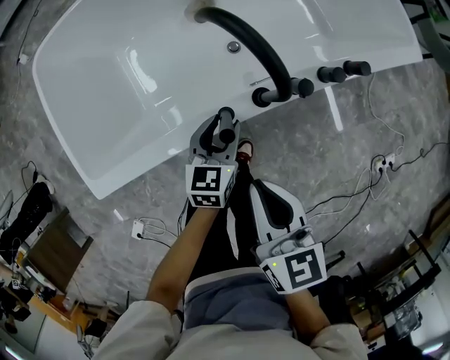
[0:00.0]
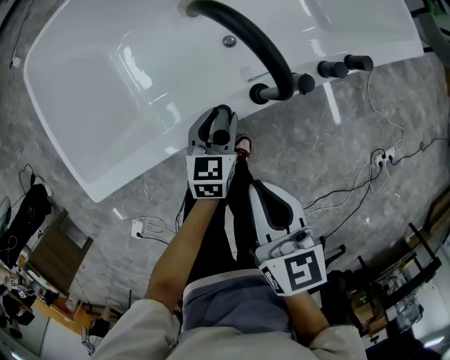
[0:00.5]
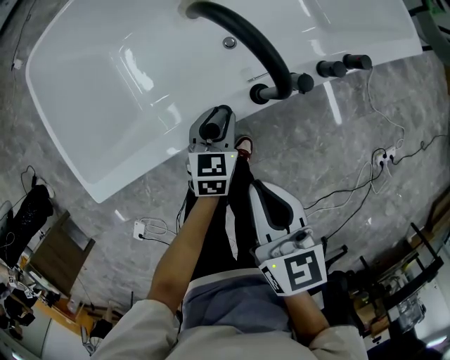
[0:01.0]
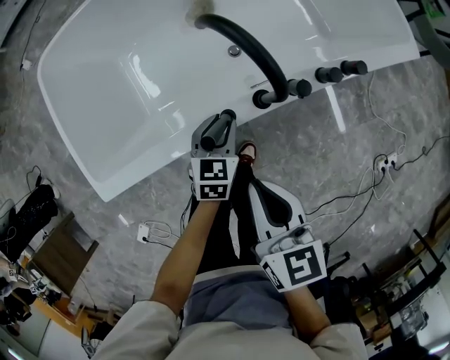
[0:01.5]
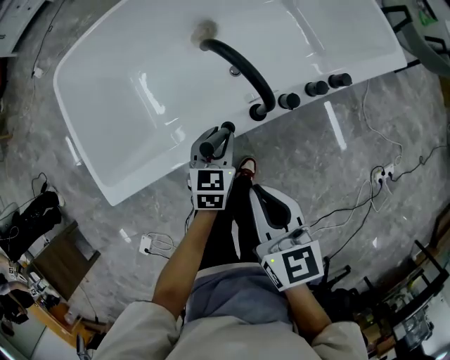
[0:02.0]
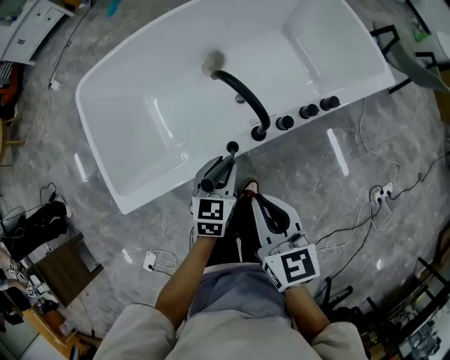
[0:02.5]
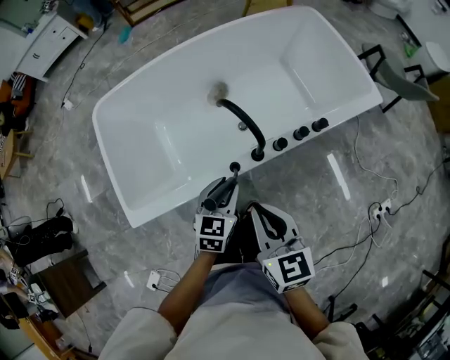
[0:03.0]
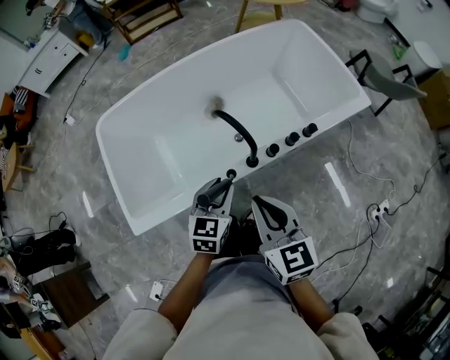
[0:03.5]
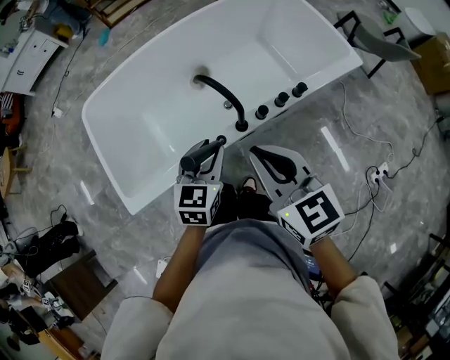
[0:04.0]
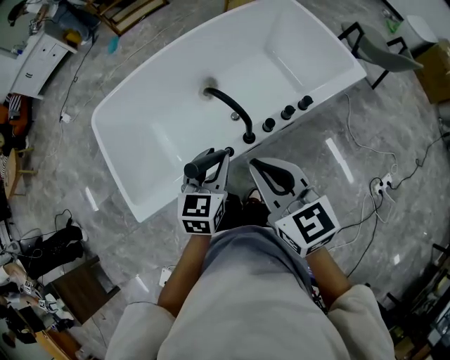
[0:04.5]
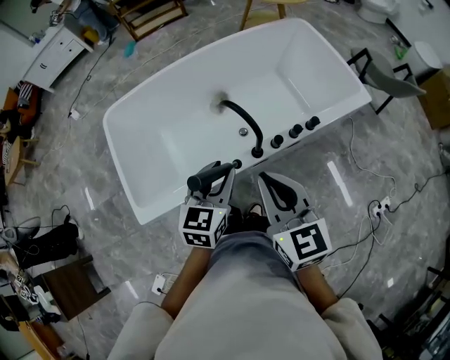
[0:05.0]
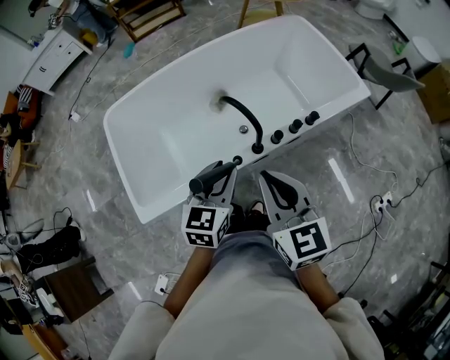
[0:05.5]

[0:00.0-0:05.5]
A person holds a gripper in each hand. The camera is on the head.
0:00.0 to 0:02.0: The right gripper changes place by approximately 5 cm.
0:02.0 to 0:03.5: The two grippers go about 15 cm upward.
0:03.5 to 0:05.5: Both grippers travel together upward, some 5 cm.

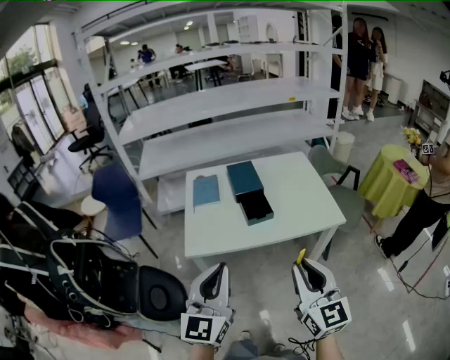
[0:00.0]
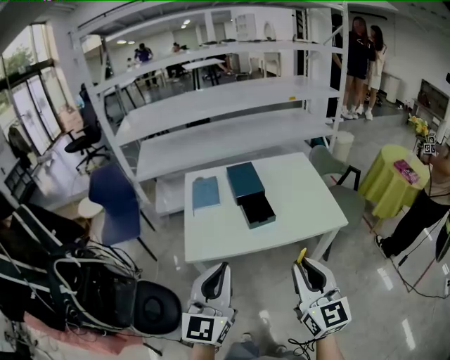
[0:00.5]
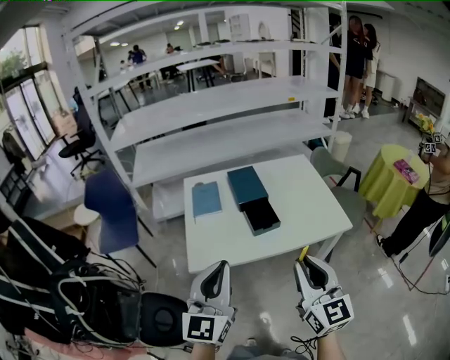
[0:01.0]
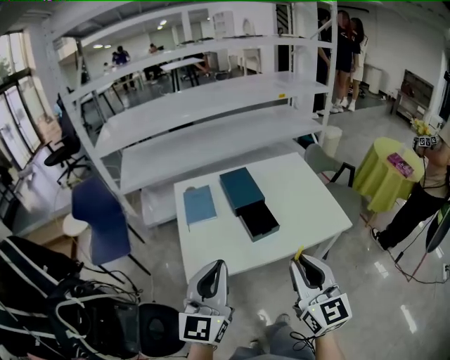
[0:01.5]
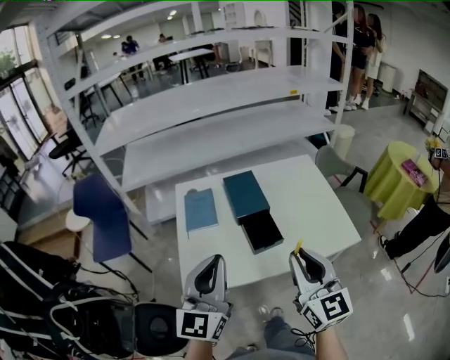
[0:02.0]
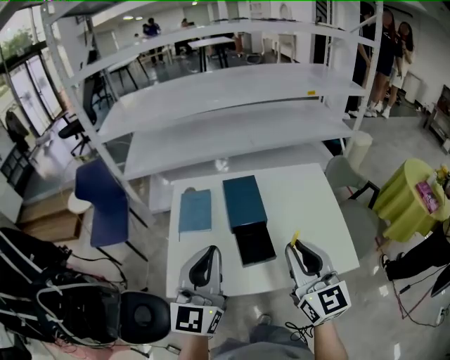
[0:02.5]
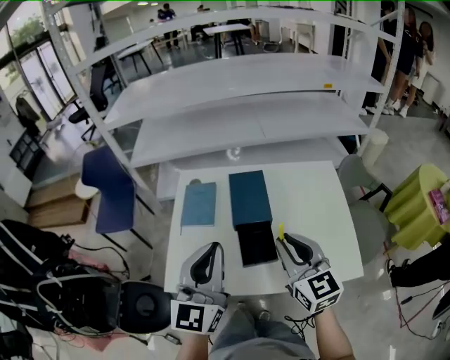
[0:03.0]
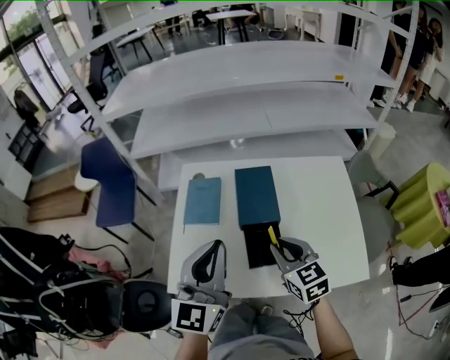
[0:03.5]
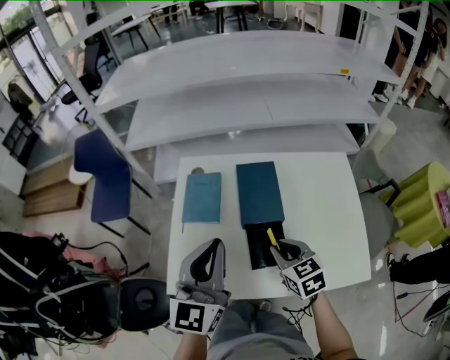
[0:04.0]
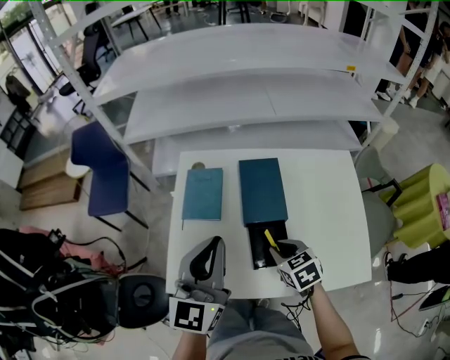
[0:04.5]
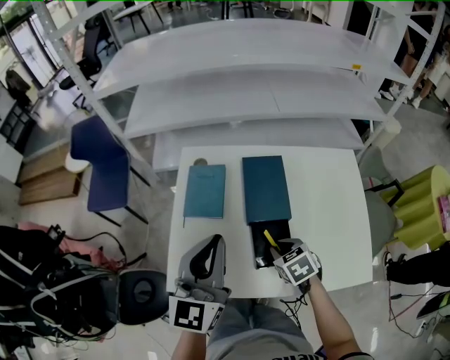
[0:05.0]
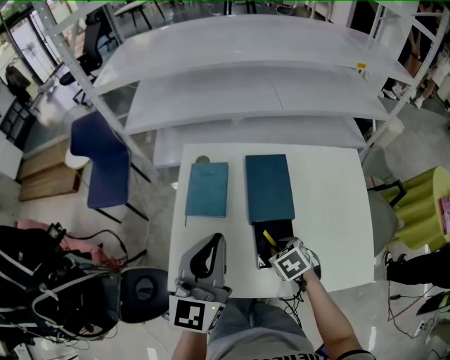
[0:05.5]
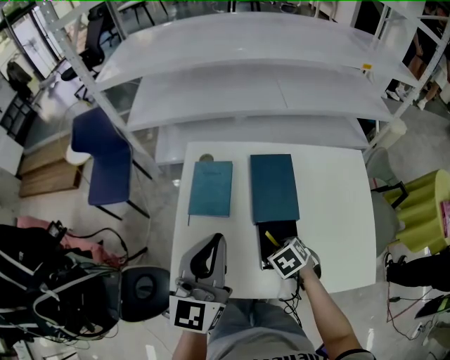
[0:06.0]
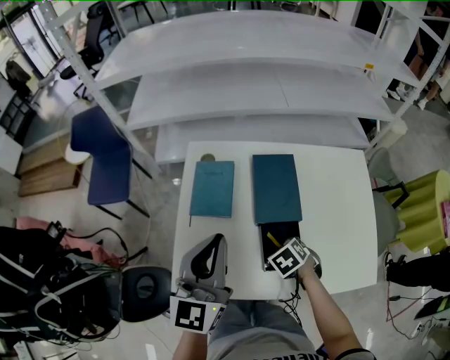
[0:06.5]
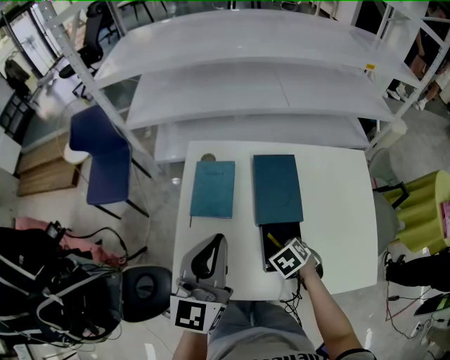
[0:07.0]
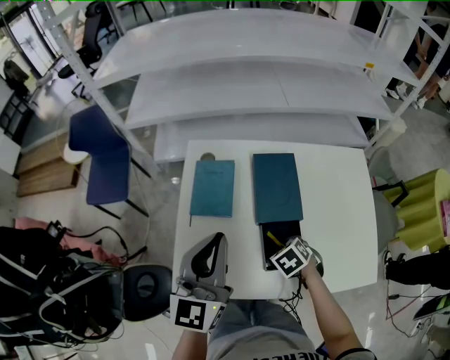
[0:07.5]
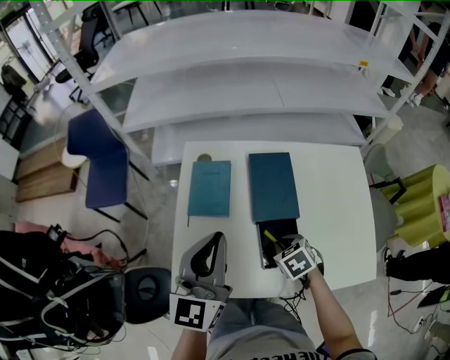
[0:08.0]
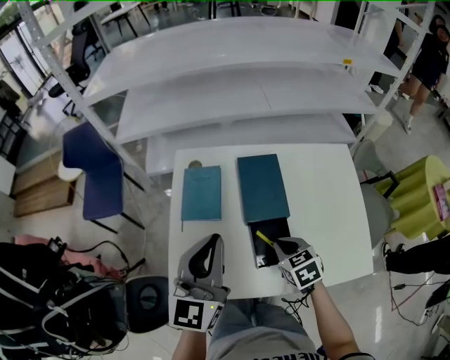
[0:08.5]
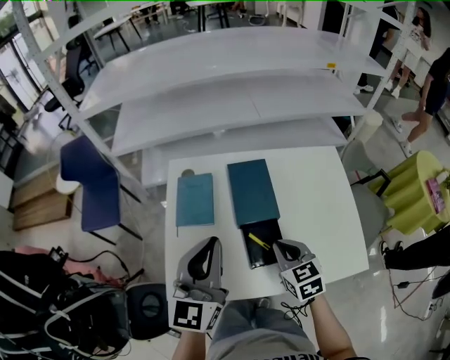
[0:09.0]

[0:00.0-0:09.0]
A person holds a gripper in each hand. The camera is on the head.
0:00.0 to 0:02.0: The two grippers go some 20 cm forward.
0:02.0 to 0:04.5: The right gripper shifts some 30 cm downward and forward, and angles its fingers downward, by approximately 50 degrees, while the left gripper travels forward by some 15 cm.
0:04.5 to 0:07.0: The right gripper goes roughly 5 cm downward, and changes its angle by some 30 degrees.
0:07.0 to 0:09.0: The right gripper goes some 15 cm upward, and points its fingers approximately 40 degrees further upward.

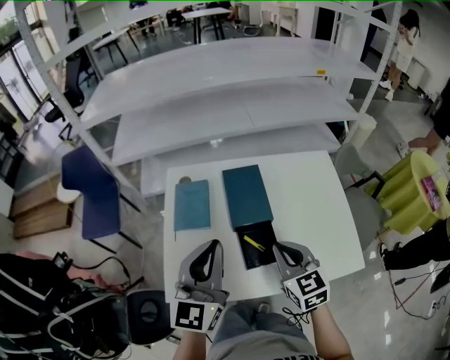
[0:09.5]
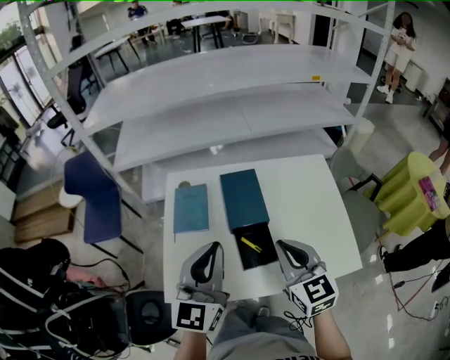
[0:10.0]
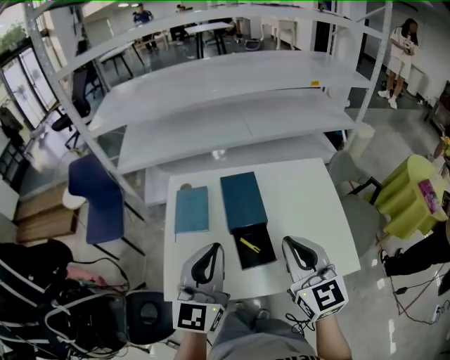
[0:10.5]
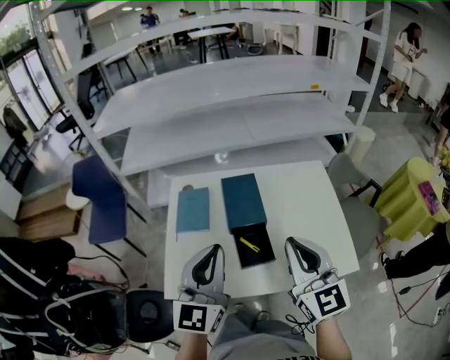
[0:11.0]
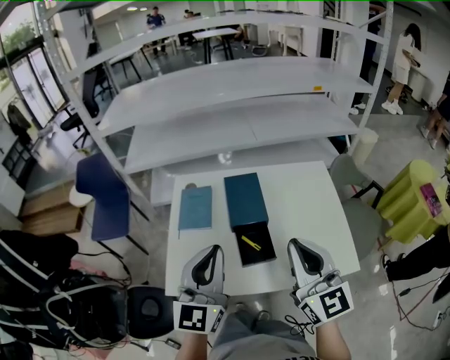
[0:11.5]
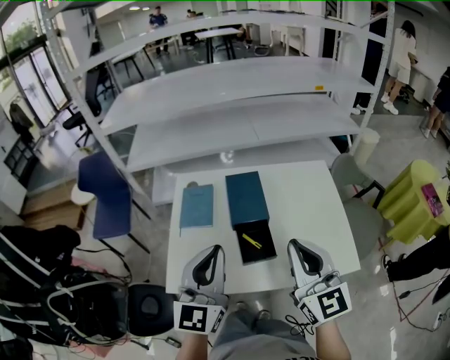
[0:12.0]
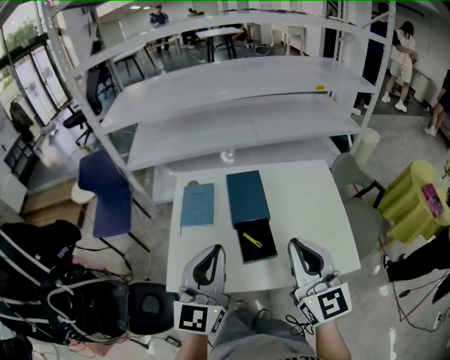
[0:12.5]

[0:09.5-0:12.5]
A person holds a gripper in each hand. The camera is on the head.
0:09.5 to 0:11.0: The left gripper moves approximately 5 cm, while the right gripper goes about 15 cm upward, and turns by some 20 degrees.
0:11.0 to 0:12.5: The grippers make only small movements.

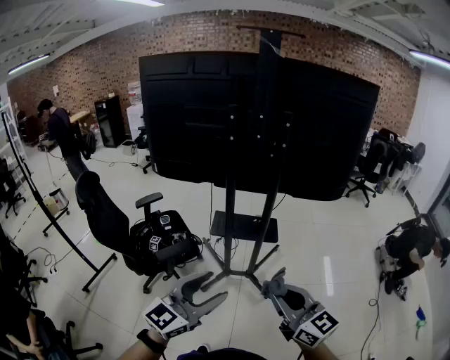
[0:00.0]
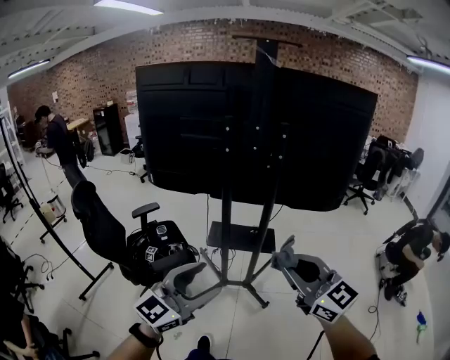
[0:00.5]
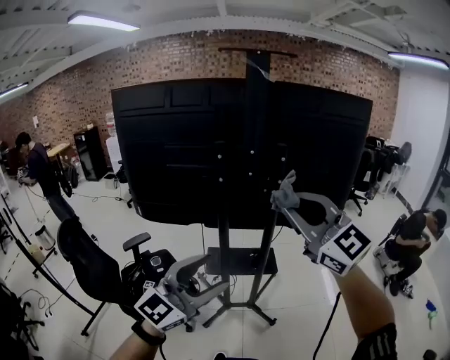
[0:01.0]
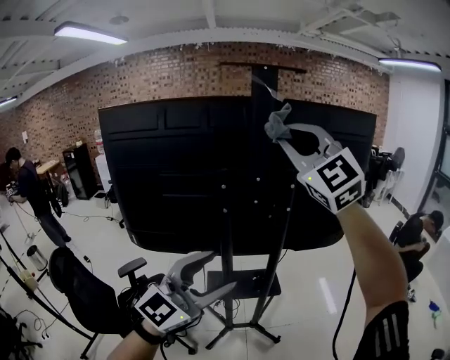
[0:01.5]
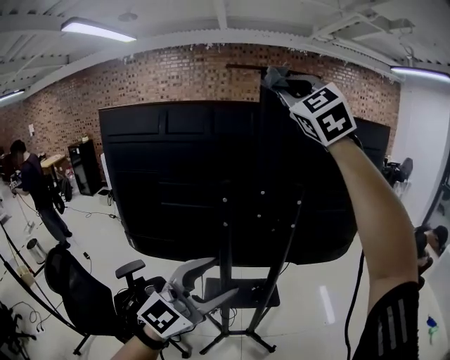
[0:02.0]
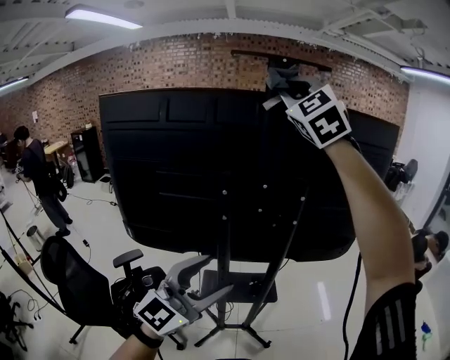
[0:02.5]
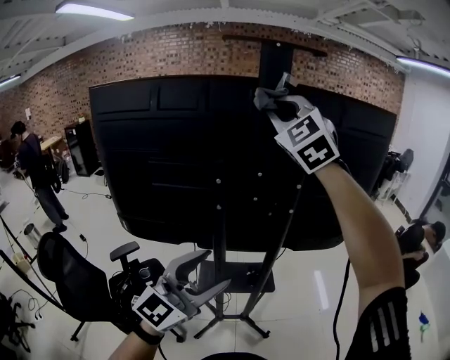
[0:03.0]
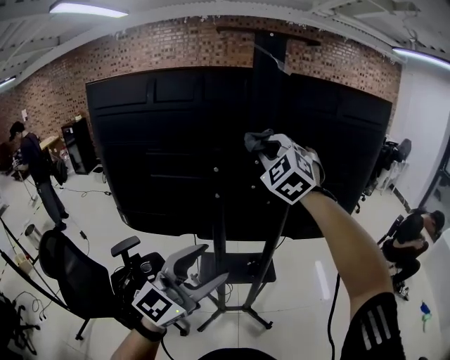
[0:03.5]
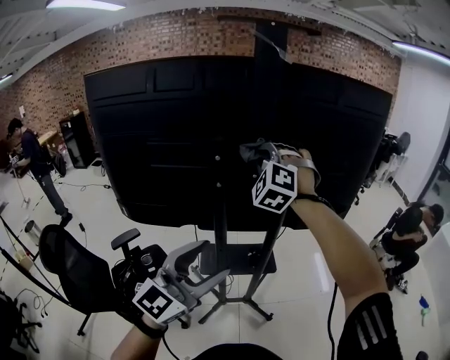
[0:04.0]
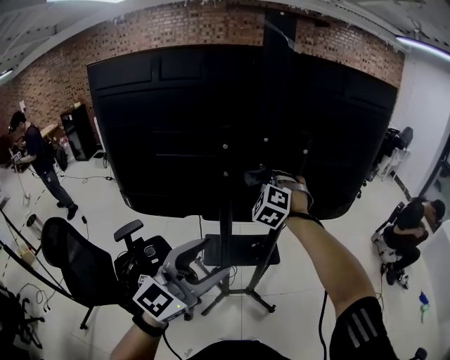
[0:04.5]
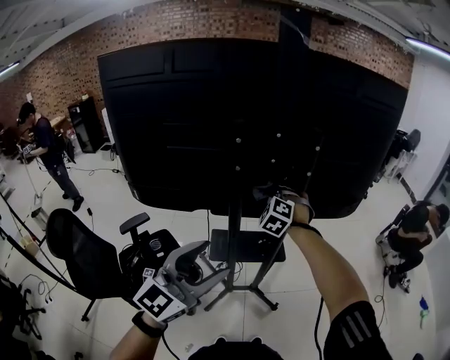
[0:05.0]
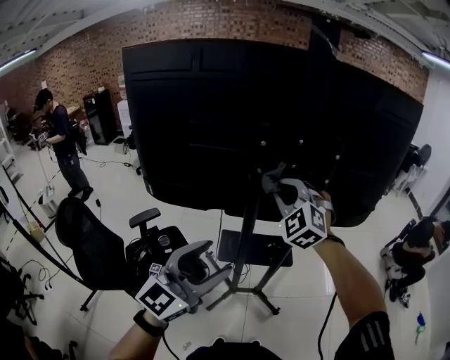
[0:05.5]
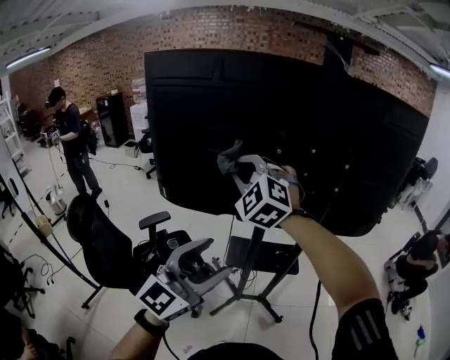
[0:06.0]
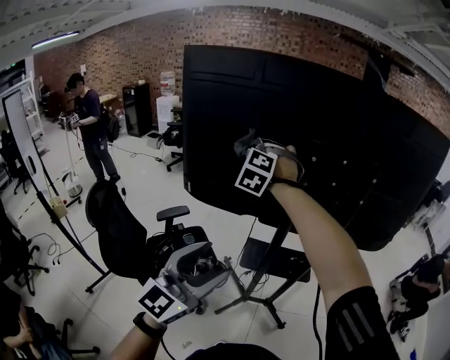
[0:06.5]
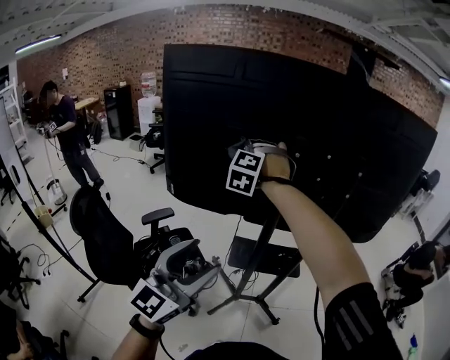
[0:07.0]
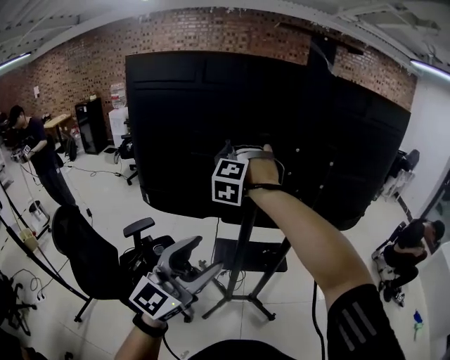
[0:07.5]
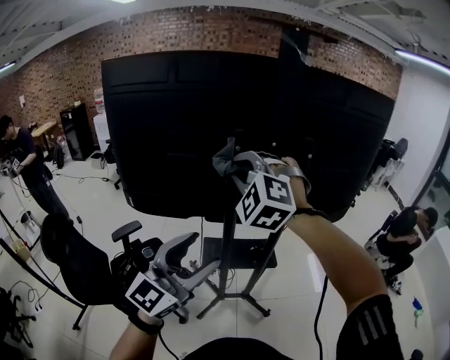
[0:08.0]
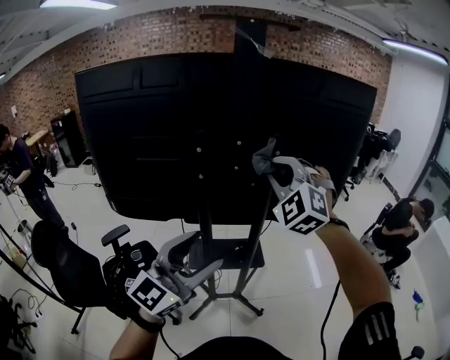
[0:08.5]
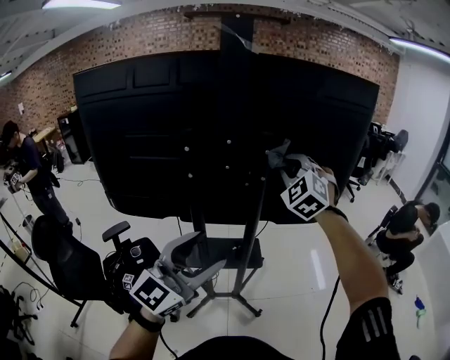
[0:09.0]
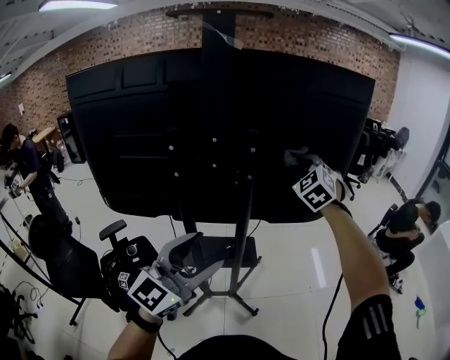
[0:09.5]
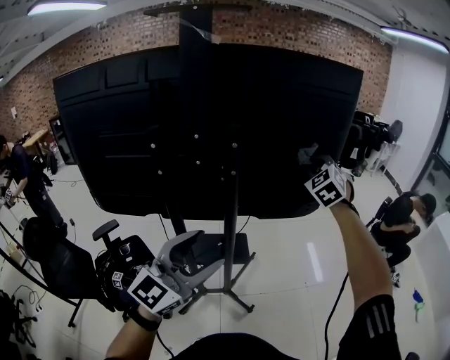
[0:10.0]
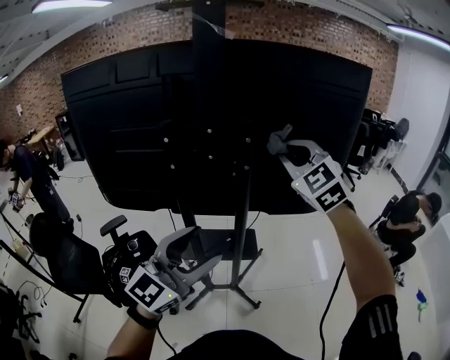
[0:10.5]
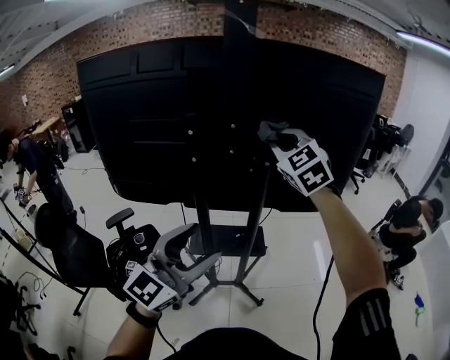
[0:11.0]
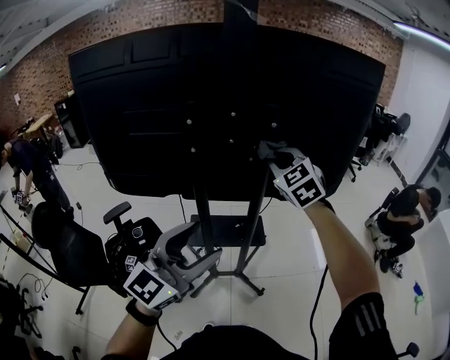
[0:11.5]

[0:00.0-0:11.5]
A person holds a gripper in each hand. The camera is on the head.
0:00.0 to 0:02.0: The left gripper moves forward and upward, roughly 35 cm, and turns by roughly 20 degrees; the right gripper travels upward and forward by roughly 70 cm, and rolls counterclockwise, seen from behind, by about 60 degrees.
0:02.0 to 0:04.0: The right gripper shifts about 35 cm downward, and turns by some 40 degrees, while the left gripper shifts approximately 5 cm downward.
0:04.0 to 0:06.0: The left gripper travels to the left and backward by about 10 cm; the right gripper heads to the left and backward, covering some 25 cm, reaches about 20 cm downward, then returns, and changes its angle by approximately 30 degrees.
0:06.0 to 0:07.5: The right gripper moves forward, some 10 cm, and swivels approximately 40 degrees.
0:07.5 to 0:09.5: The left gripper goes roughly 25 cm to the right and forward, while the right gripper goes some 40 cm to the right, and turns by roughly 40 degrees.
0:09.5 to 0:11.5: The right gripper heads to the left and backward, covering roughly 15 cm, while the left gripper moves about 5 cm.
